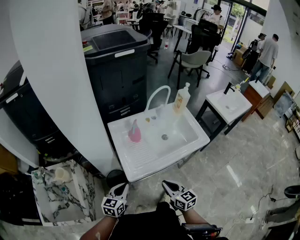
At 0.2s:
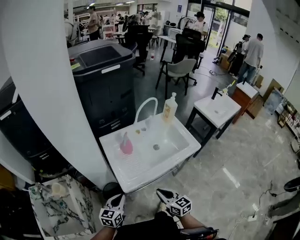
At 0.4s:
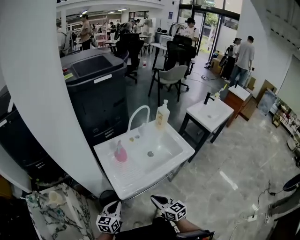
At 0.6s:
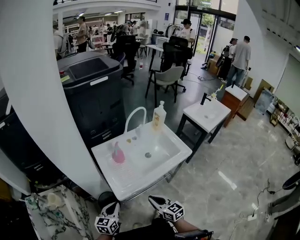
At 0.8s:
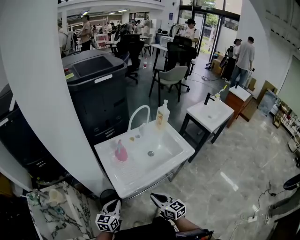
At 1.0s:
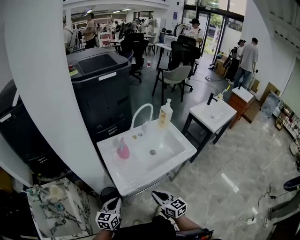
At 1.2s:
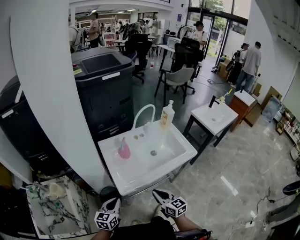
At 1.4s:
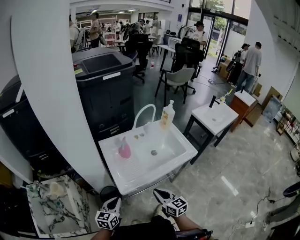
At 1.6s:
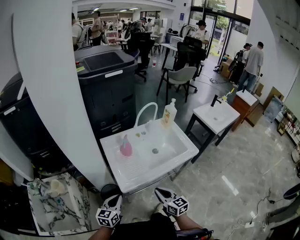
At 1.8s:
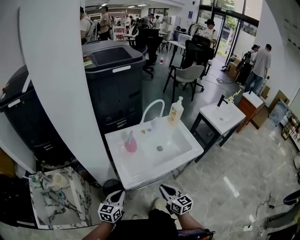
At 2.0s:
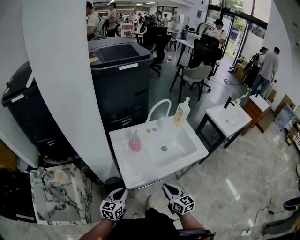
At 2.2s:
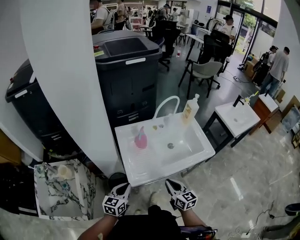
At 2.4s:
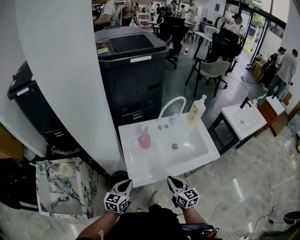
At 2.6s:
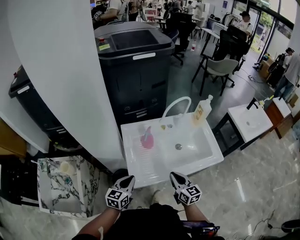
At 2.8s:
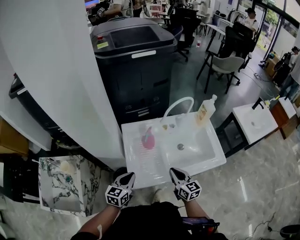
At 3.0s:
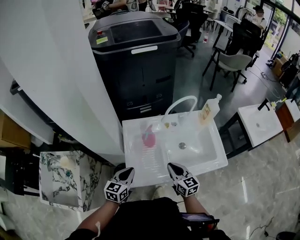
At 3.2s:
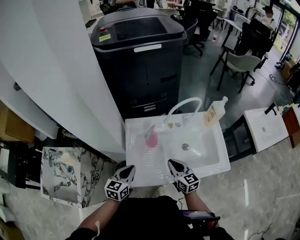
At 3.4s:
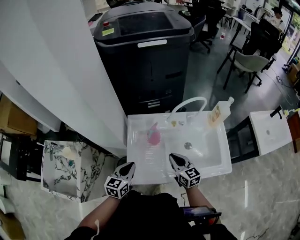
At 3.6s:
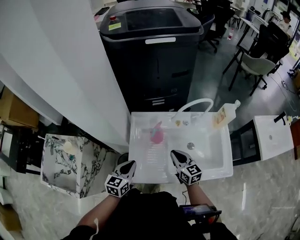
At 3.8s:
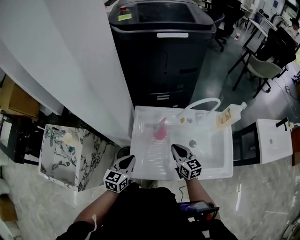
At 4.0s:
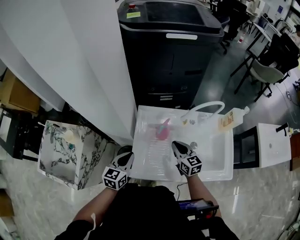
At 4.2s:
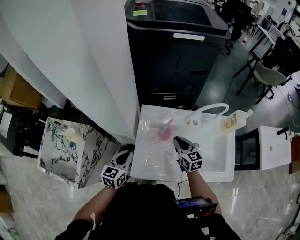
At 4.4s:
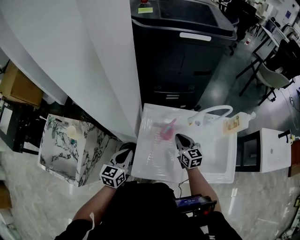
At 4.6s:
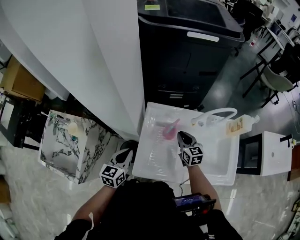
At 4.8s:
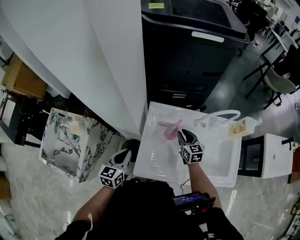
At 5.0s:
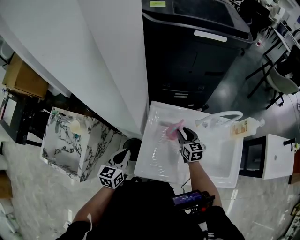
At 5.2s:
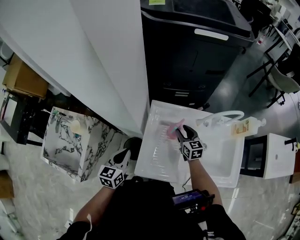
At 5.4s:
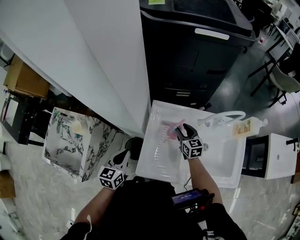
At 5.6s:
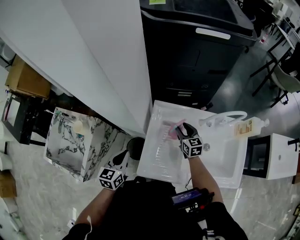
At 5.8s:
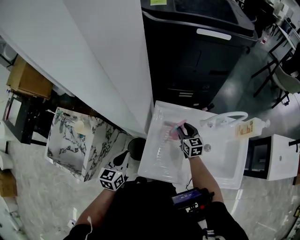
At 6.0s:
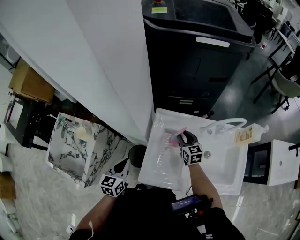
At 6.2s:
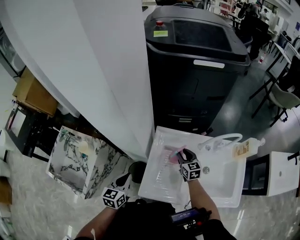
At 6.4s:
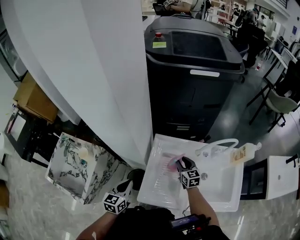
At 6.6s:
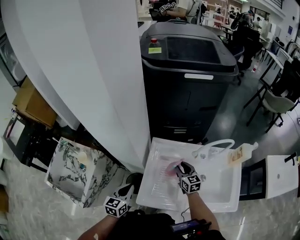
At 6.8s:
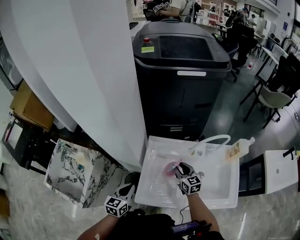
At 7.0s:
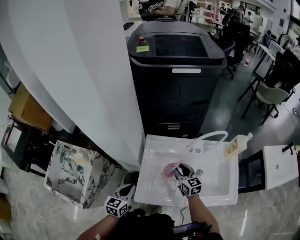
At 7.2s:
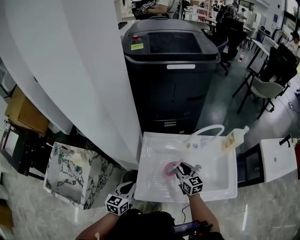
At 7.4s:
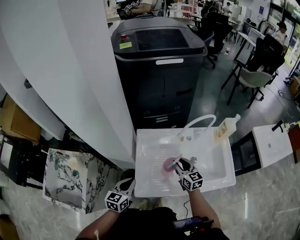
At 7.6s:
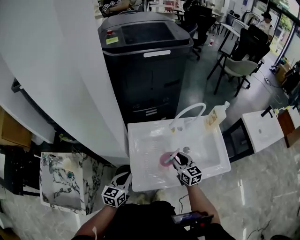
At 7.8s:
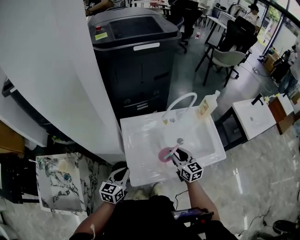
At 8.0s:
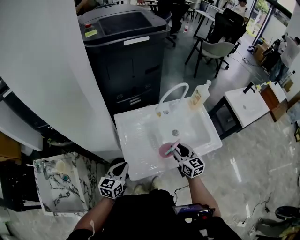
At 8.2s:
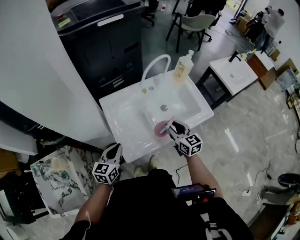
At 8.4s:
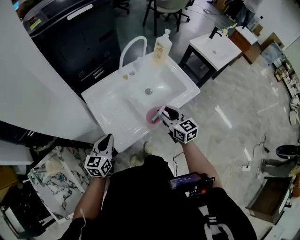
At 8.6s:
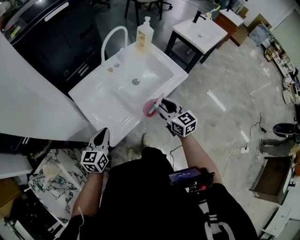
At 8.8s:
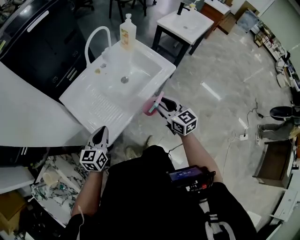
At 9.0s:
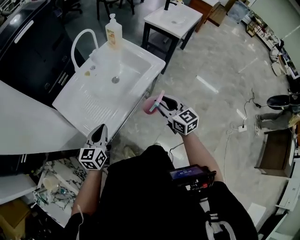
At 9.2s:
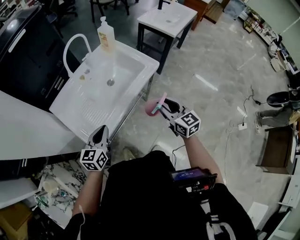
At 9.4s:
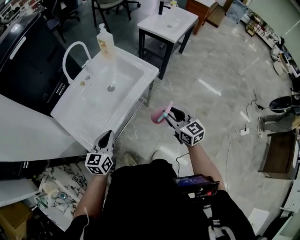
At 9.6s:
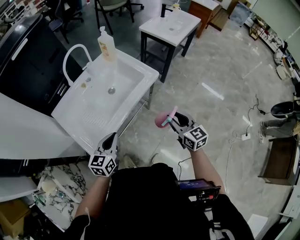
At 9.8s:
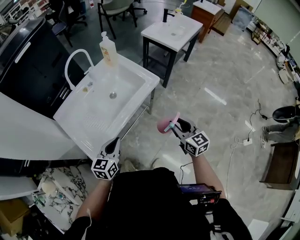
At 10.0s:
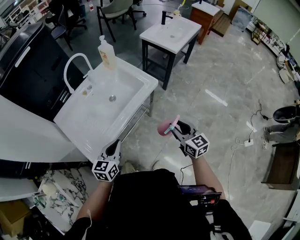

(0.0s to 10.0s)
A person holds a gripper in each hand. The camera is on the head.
0.0s - 1.4s: The left gripper goes roughly 5 cm backward.
1.4s - 2.8s: Both grippers move forward, about 15 cm.
2.8s - 4.2s: The right gripper moves forward, about 20 cm, while the left gripper travels forward by approximately 5 cm.
4.2s - 5.8s: The left gripper heads to the left, covering some 5 cm. Meanwhile the right gripper shifts approximately 10 cm forward and downward, and opens its fingers.
5.8s - 7.2s: The right gripper moves backward and upward, approximately 15 cm, while the left gripper heads to the right, covering about 5 cm.
7.2s - 8.6s: The left gripper ends up approximately 5 cm from where it was, and changes its angle by roughly 40 degrees. Meanwhile the right gripper changes place by approximately 25 cm, and changes its angle by roughly 30 degrees.
8.6s - 10.0s: Both grippers move to the right, roughly 25 cm.

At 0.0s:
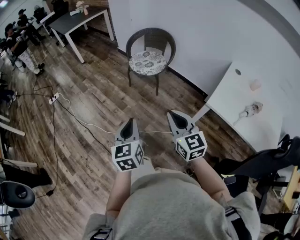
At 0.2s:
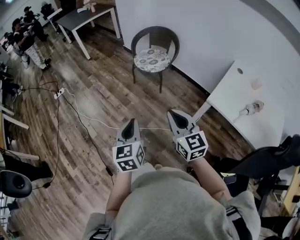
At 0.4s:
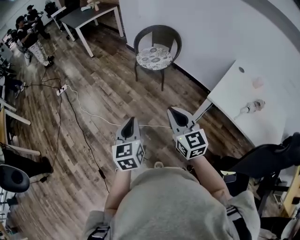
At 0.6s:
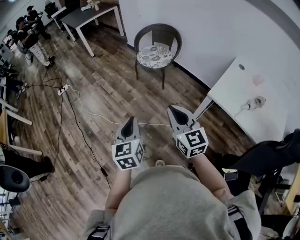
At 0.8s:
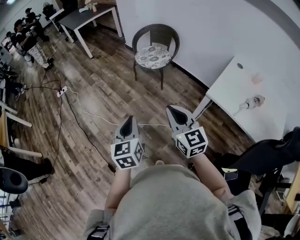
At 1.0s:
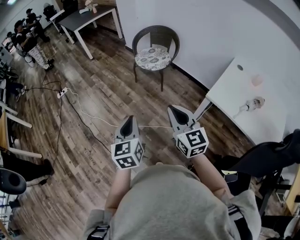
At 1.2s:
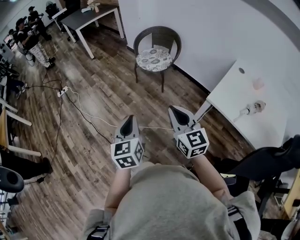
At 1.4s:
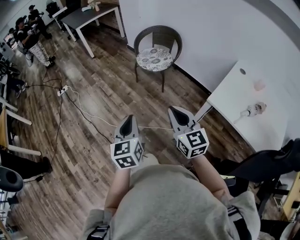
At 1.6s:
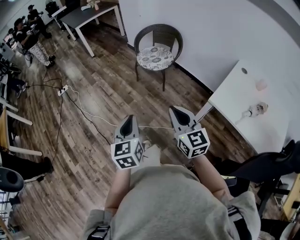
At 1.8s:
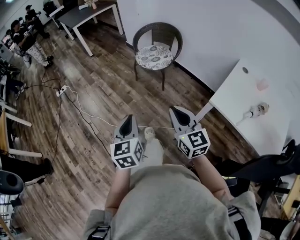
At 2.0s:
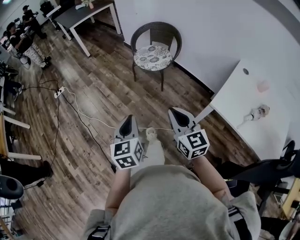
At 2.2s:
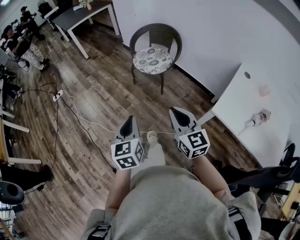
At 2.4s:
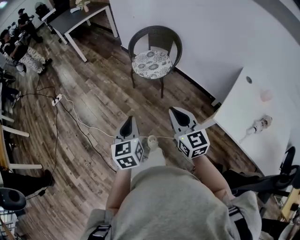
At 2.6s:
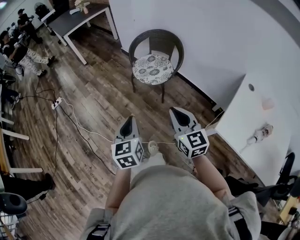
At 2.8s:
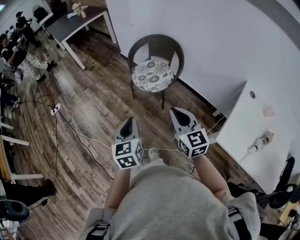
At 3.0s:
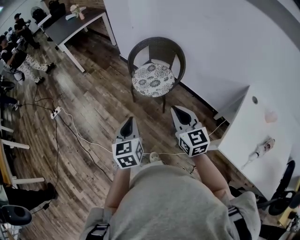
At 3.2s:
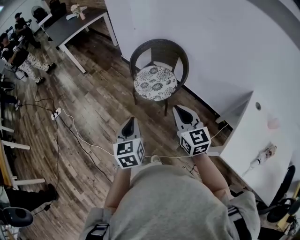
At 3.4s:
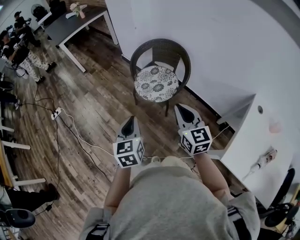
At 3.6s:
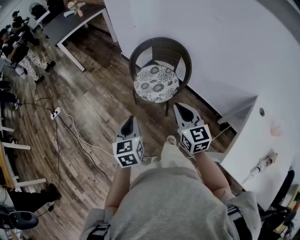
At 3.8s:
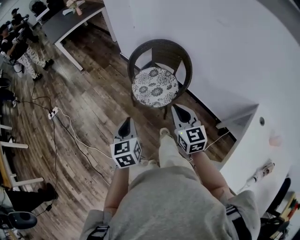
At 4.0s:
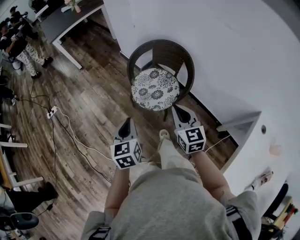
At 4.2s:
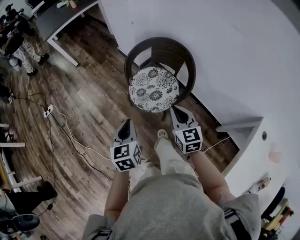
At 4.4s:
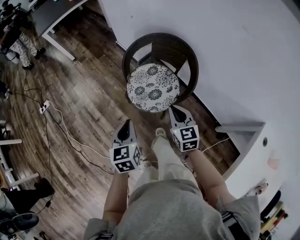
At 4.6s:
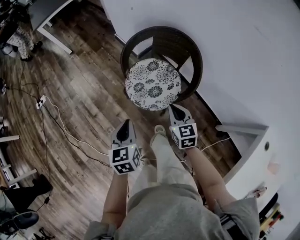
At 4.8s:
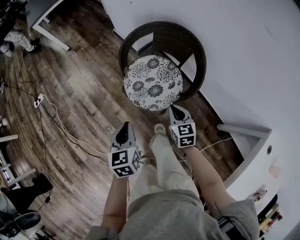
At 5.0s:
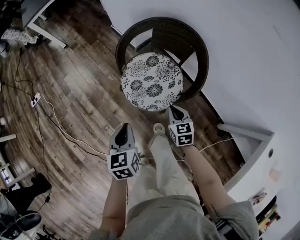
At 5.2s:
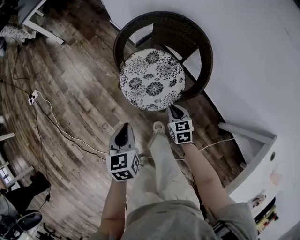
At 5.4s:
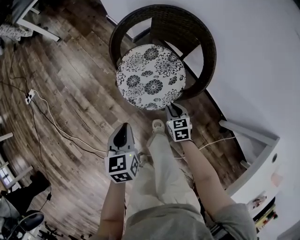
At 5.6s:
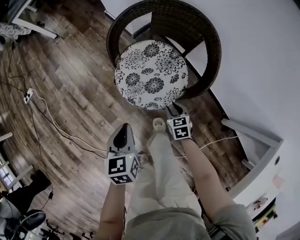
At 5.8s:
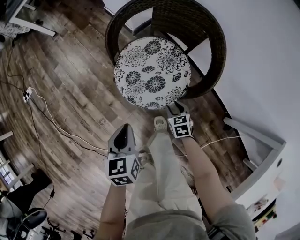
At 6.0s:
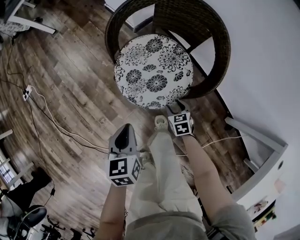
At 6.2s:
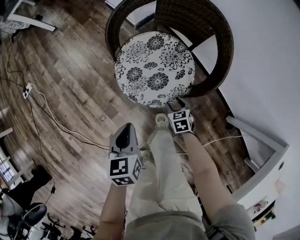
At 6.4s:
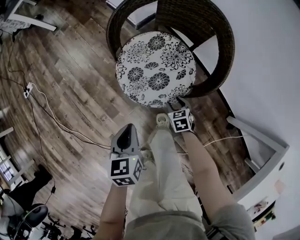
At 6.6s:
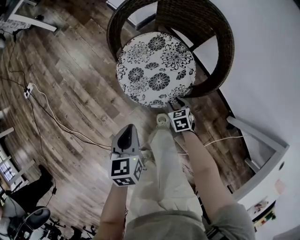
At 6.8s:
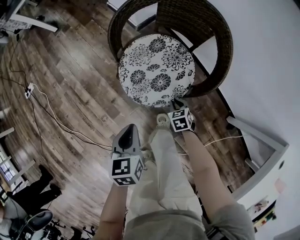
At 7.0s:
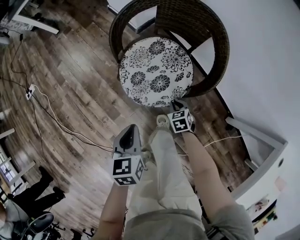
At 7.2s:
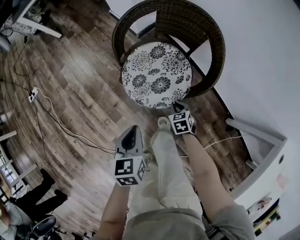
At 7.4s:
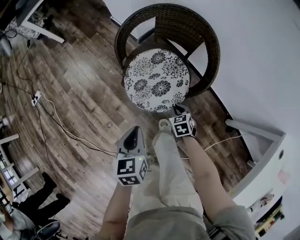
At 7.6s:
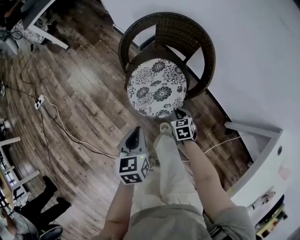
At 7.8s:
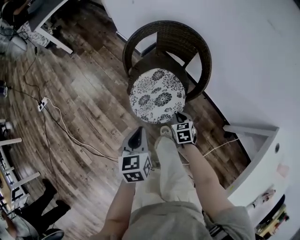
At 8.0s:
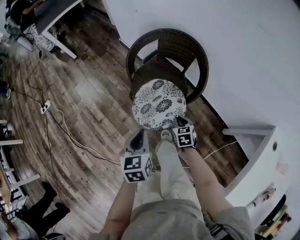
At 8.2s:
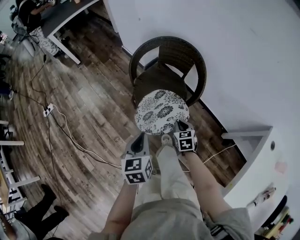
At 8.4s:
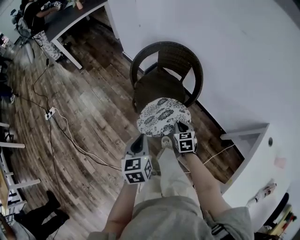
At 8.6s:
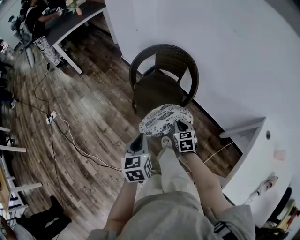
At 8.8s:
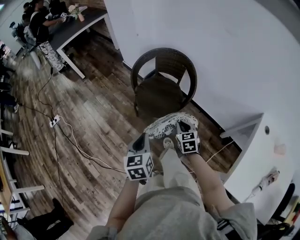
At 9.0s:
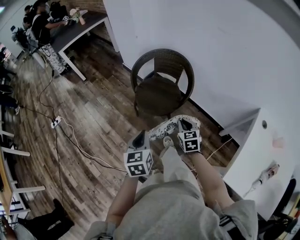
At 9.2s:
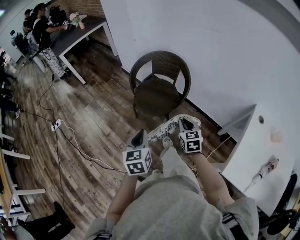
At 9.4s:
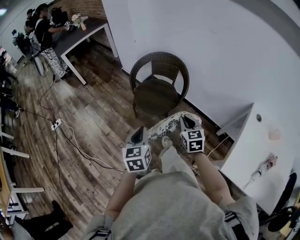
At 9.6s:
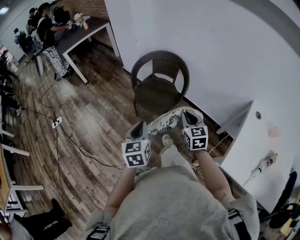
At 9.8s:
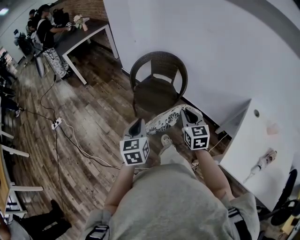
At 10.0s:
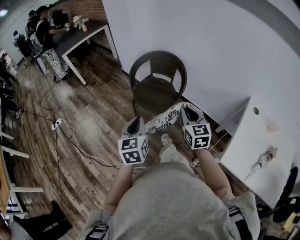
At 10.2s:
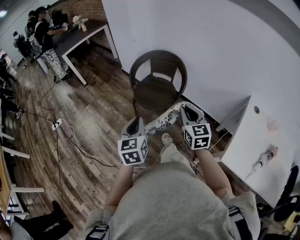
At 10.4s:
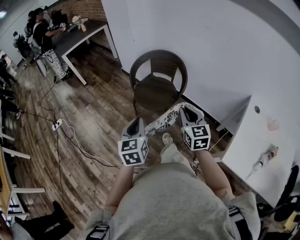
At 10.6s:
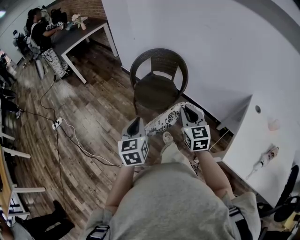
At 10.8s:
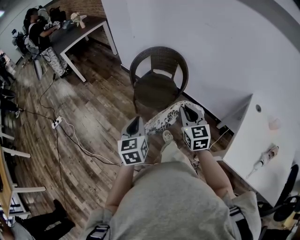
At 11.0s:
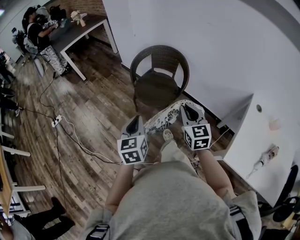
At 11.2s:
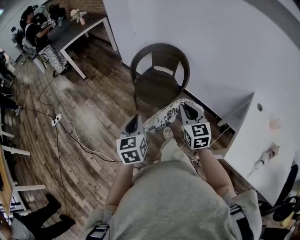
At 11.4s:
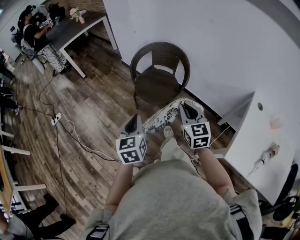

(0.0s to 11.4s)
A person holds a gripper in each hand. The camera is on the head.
1.4s - 2.8s: The grippers both shift forward by some 30 cm.
2.8s - 4.2s: Both grippers move forward, approximately 30 cm.
4.2s - 5.6s: The right gripper moves downward, roughly 40 cm, tips its fingers downward by some 30 degrees, and opens. The left gripper heads downward and forward, covering some 25 cm.
5.6s - 7.2s: The right gripper closes its fingers.
7.2s - 8.6s: Both grippers move upward and backward, about 30 cm. The right gripper turns by some 20 degrees.
8.6s - 10.0s: The right gripper travels upward and backward by about 30 cm, and turns by roughly 30 degrees, while the left gripper goes approximately 15 cm backward and upward.
10.0s - 11.4s: The grippers stay close to where they were, moving slightly.

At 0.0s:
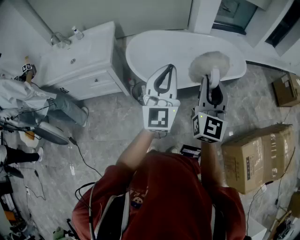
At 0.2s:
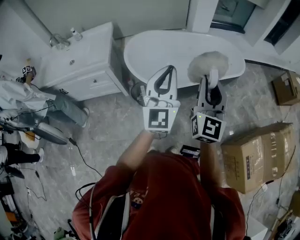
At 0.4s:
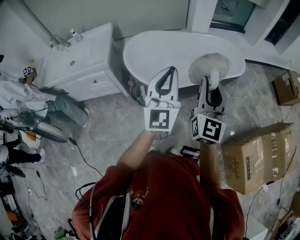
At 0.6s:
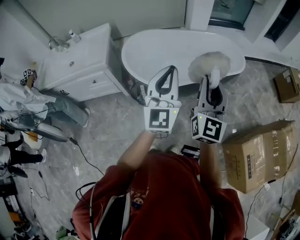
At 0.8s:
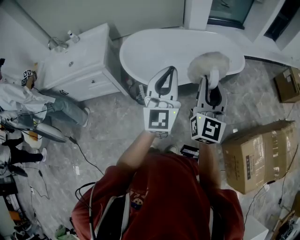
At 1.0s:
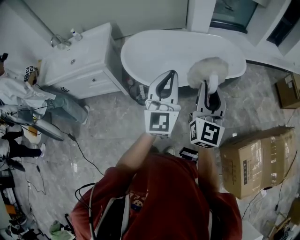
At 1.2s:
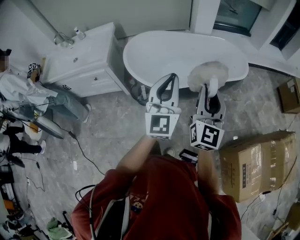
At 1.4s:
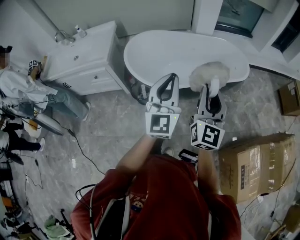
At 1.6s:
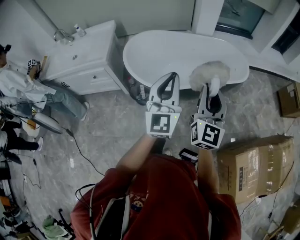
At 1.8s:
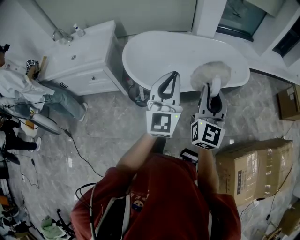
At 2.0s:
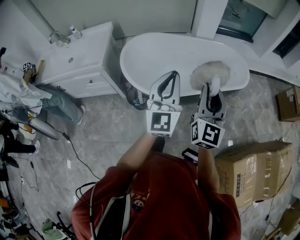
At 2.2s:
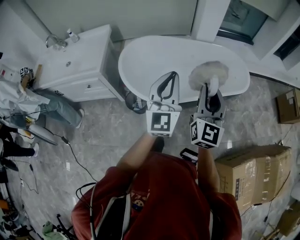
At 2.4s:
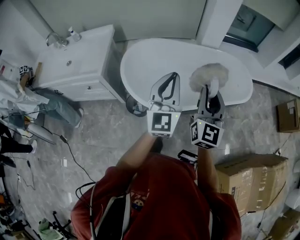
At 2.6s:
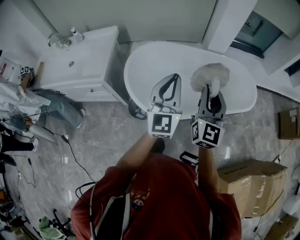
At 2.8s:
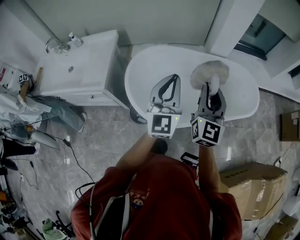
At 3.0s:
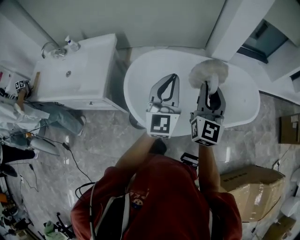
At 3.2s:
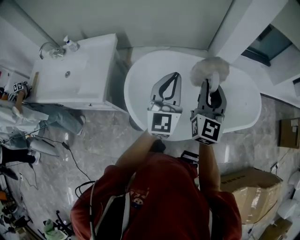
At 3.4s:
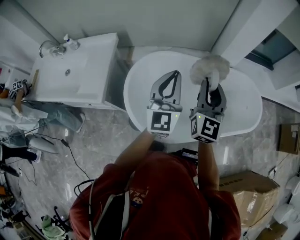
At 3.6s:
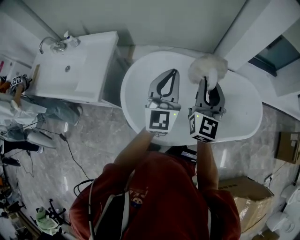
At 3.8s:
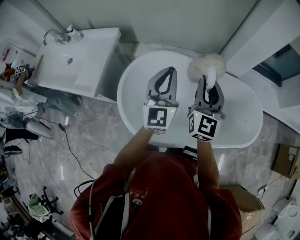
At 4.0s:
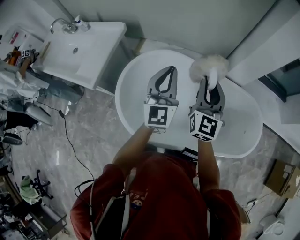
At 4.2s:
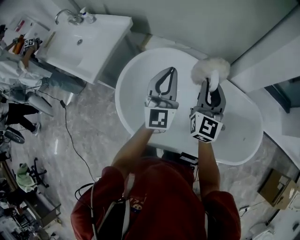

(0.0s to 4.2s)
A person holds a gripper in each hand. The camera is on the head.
0.0s - 1.4s: The two grippers go some 10 cm to the right.
1.4s - 2.8s: The grippers both shift forward by roughly 30 cm.
2.8s - 4.2s: Both grippers travel together forward, approximately 30 cm. The right gripper swivels approximately 20 degrees. The left gripper swivels some 30 degrees.
